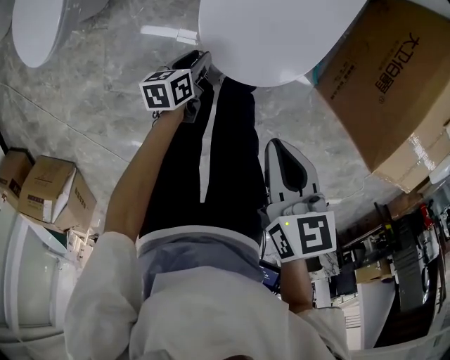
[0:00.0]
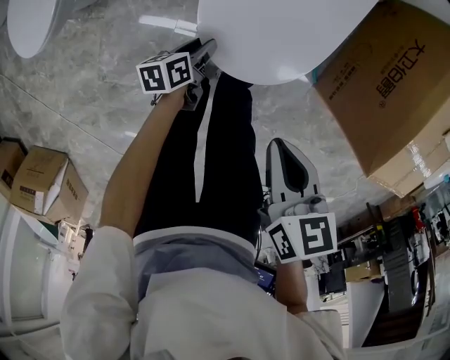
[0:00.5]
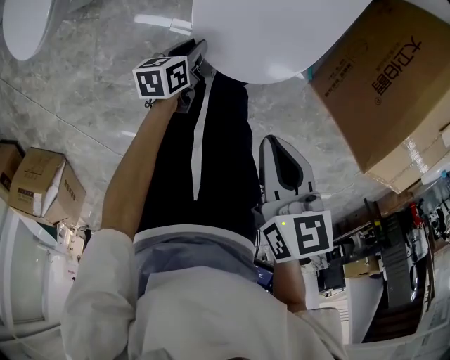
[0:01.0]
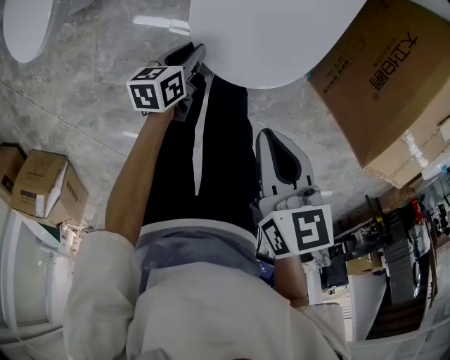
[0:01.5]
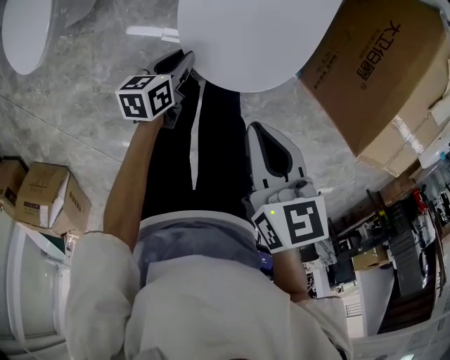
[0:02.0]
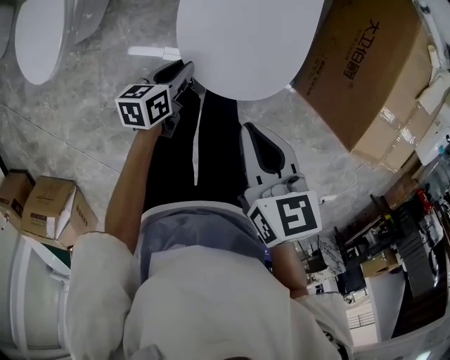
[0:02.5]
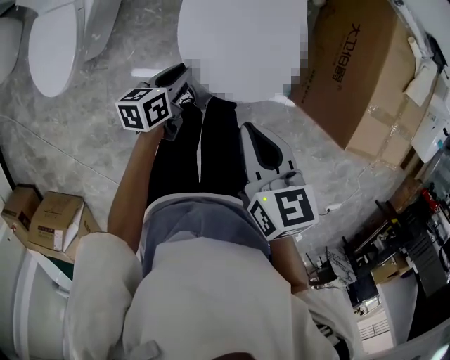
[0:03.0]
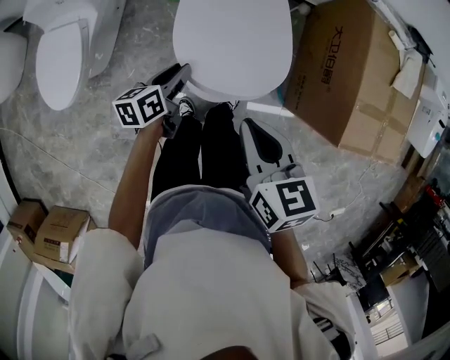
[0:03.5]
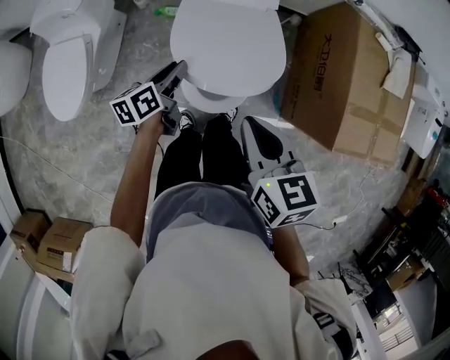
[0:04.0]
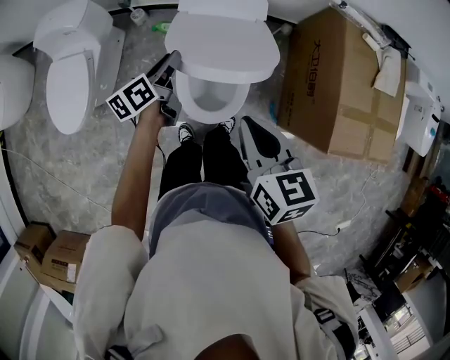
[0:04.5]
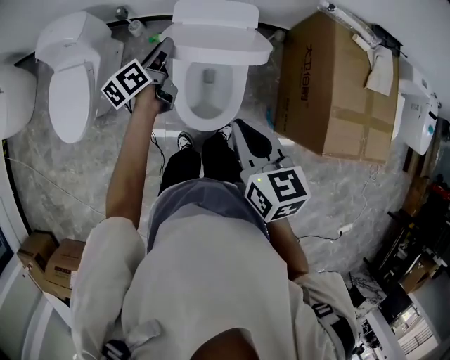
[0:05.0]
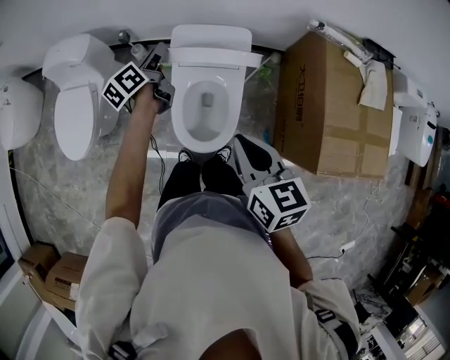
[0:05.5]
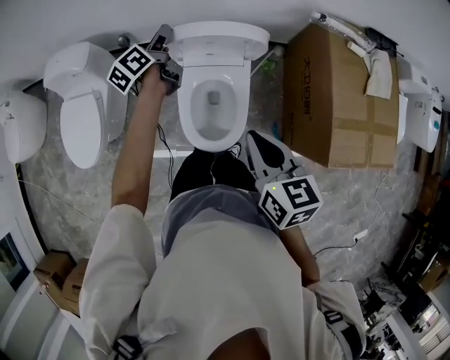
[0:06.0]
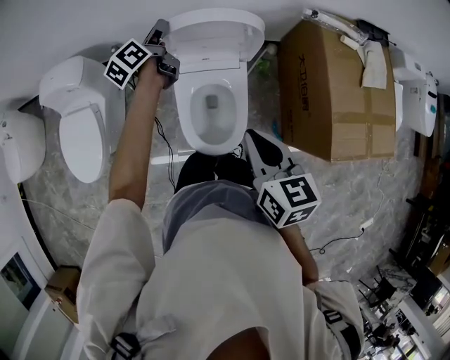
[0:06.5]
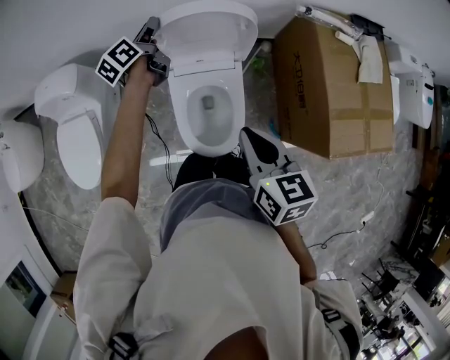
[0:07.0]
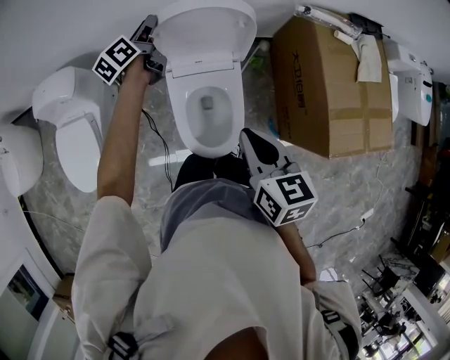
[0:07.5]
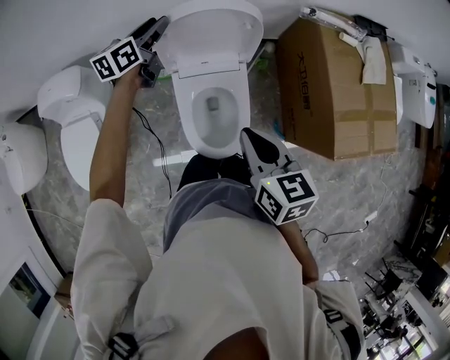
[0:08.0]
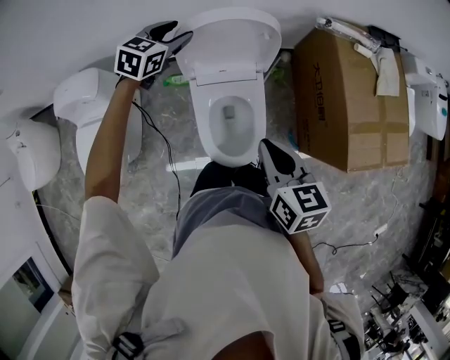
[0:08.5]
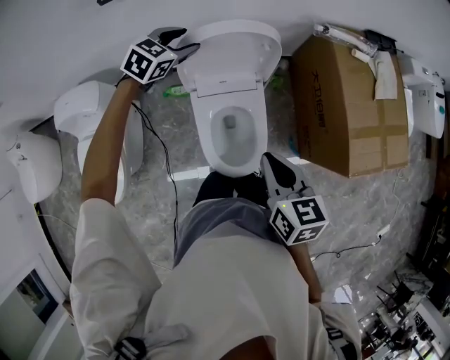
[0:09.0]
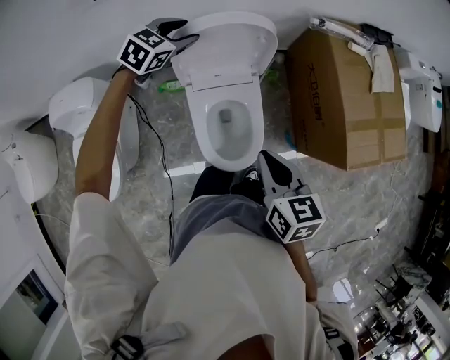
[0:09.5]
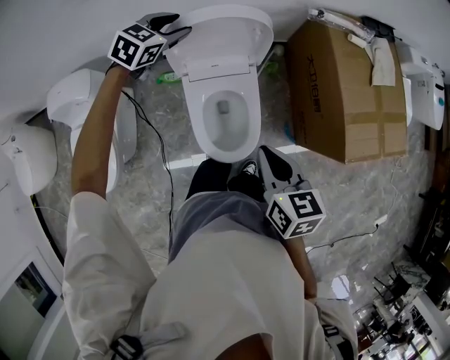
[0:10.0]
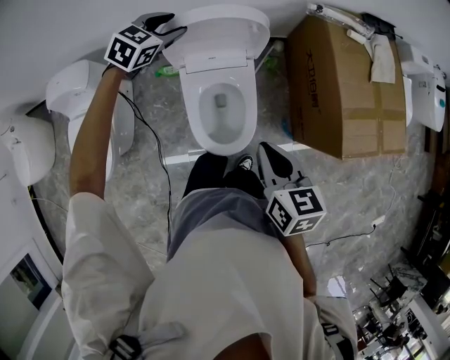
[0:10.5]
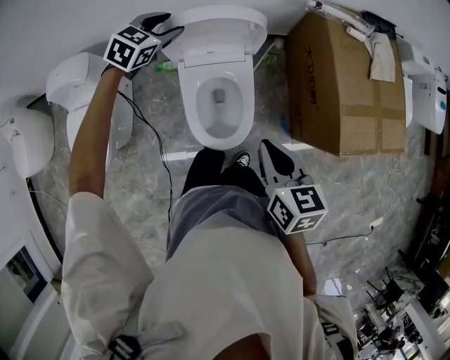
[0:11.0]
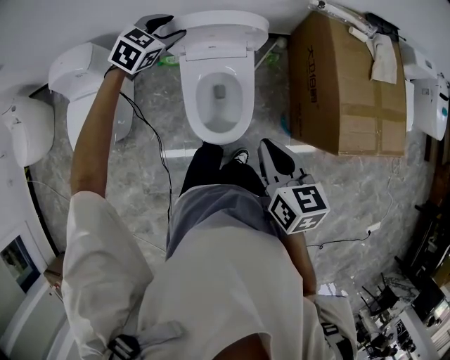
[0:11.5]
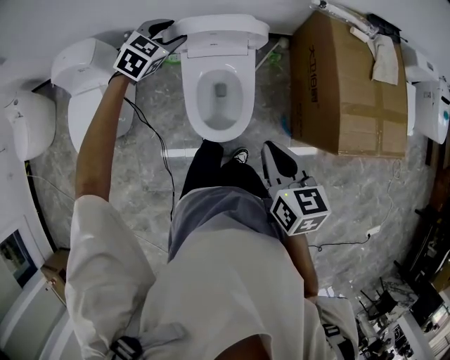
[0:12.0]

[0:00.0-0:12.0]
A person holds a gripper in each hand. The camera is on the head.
0:00.0 to 0:02.0: The left gripper goes about 5 cm upward.
0:02.0 to 0:04.0: The left gripper heads upward and forward, covering about 25 cm; the right gripper travels upward by about 20 cm.
0:04.0 to 0:06.0: The right gripper is displaced upward and to the right by roughly 5 cm; the left gripper goes some 25 cm forward and upward, and swivels some 20 degrees.
0:06.0 to 0:08.0: The right gripper moves approximately 5 cm; the left gripper travels forward by some 10 cm, and rotates some 40 degrees.
0:08.0 to 0:10.0: The left gripper changes place by some 5 cm, and rotates around the line of its fingers by about 40 degrees, clockwise from behind.
0:10.0 to 0:12.0: The right gripper moves to the right and backward, roughly 10 cm, while the left gripper shifts approximately 15 cm backward.

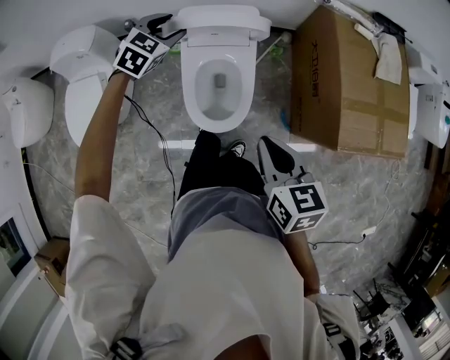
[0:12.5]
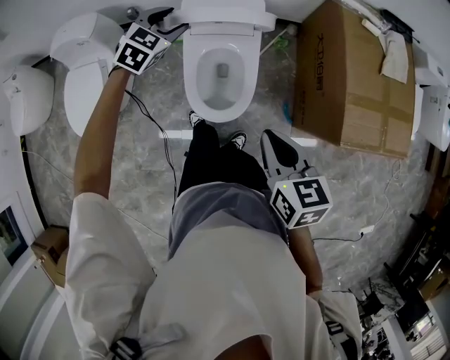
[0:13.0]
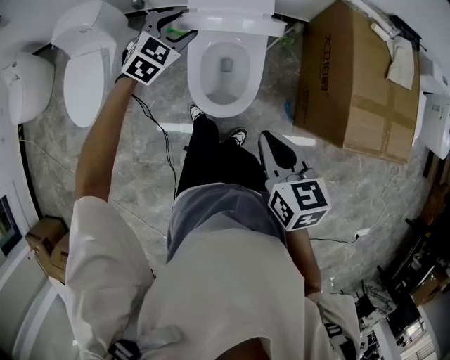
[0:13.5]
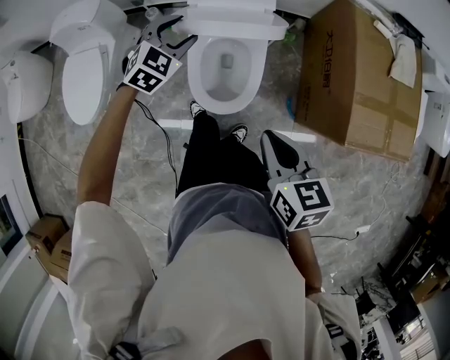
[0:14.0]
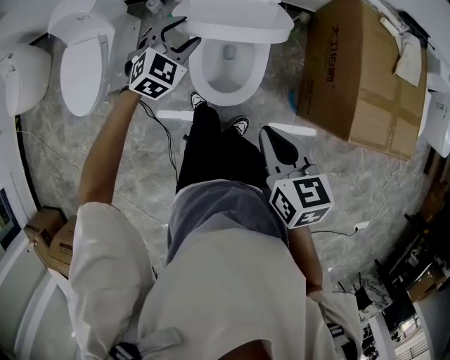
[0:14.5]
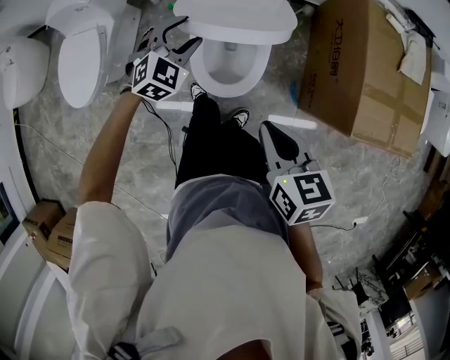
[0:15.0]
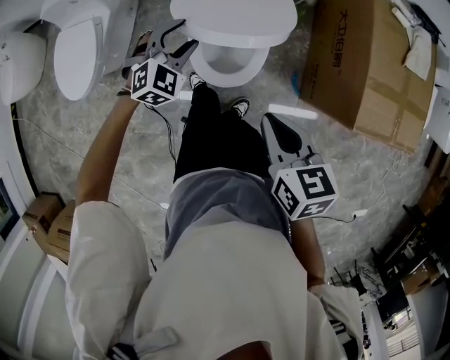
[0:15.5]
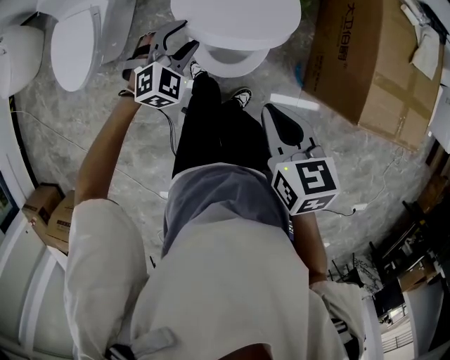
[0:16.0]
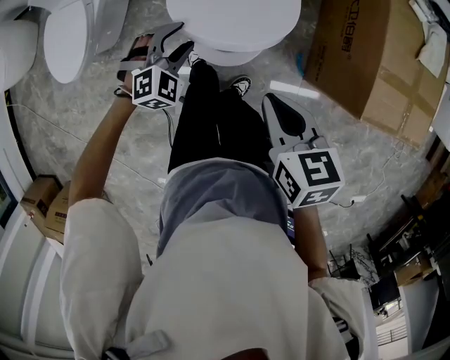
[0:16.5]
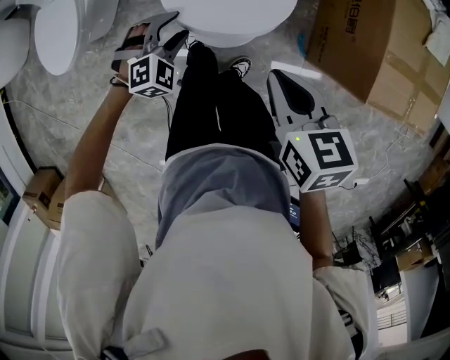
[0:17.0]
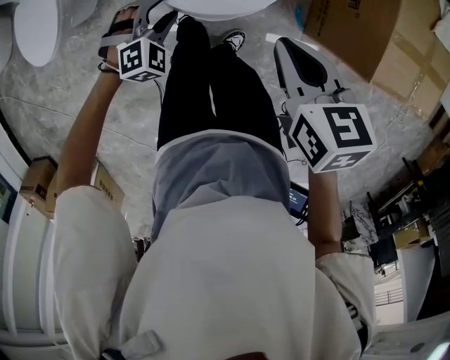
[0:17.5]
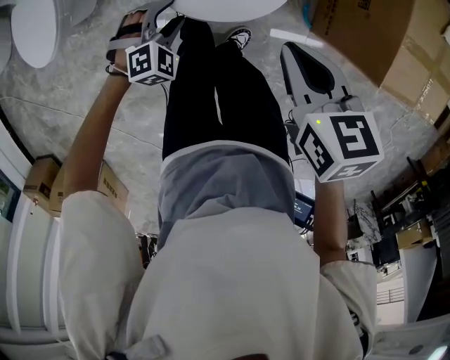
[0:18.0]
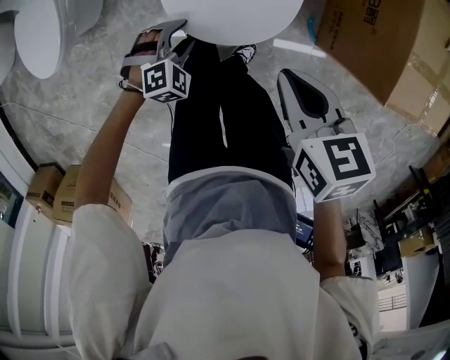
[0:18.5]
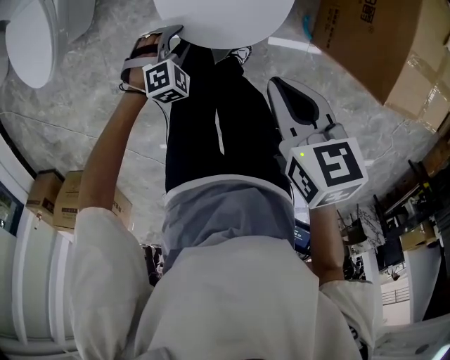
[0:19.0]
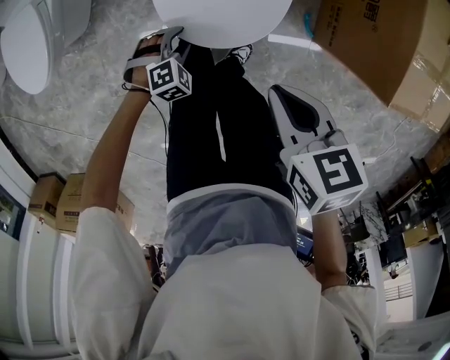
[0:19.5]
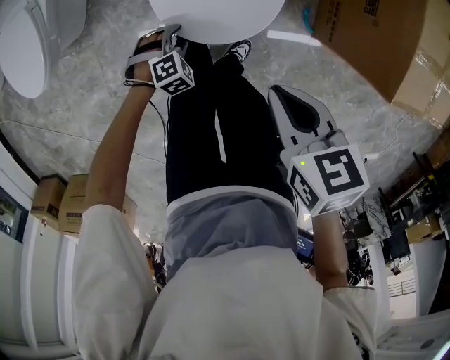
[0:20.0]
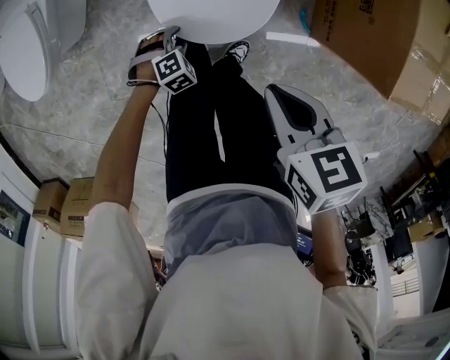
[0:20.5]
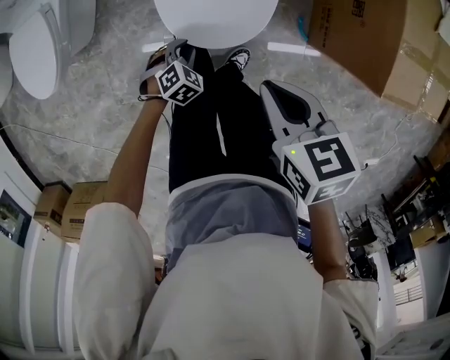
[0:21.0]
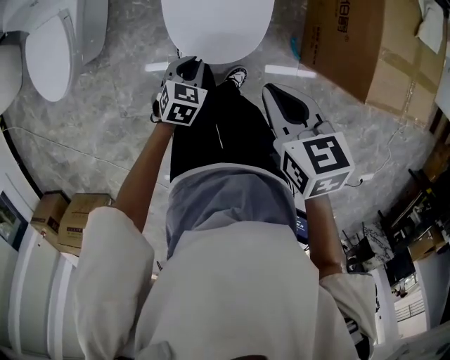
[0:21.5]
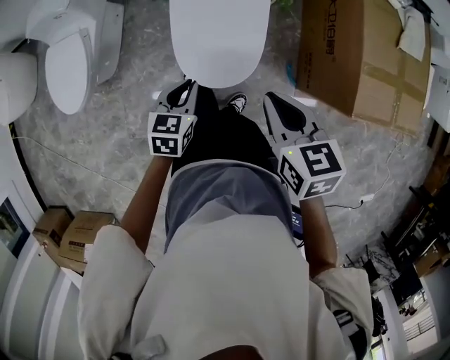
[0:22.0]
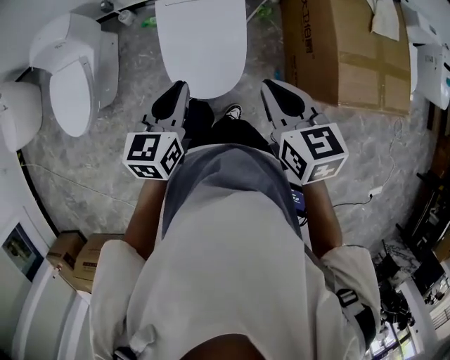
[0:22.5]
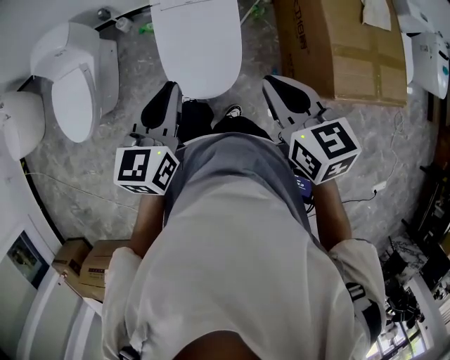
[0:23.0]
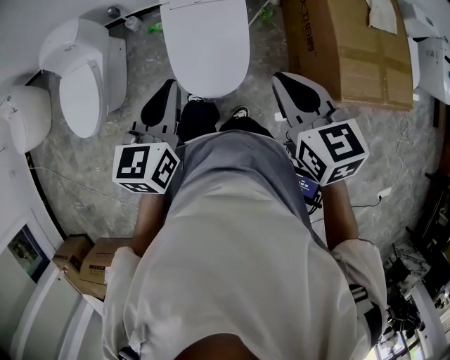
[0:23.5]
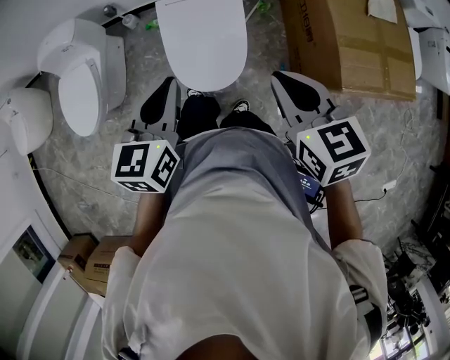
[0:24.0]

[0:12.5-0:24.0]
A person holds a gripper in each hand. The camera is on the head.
0:12.5 to 0:14.5: The left gripper goes approximately 15 cm backward and downward, while the right gripper ends up roughly 5 cm from where it was.
0:14.5 to 0:16.5: The right gripper goes approximately 5 cm downward. Meanwhile the left gripper heads backward and downward, covering some 15 cm.
0:16.5 to 0:18.5: The right gripper is displaced downward by roughly 10 cm. The left gripper is displaced downward and backward by about 15 cm.
0:18.5 to 0:20.0: The right gripper moves some 5 cm; the left gripper goes roughly 15 cm downward.
0:20.0 to 0:22.0: The right gripper travels upward by some 15 cm, while the left gripper travels upward by some 30 cm, rotates around the line of its fingers by roughly 60 degrees, counterclockwise from behind, and closes up.
0:22.0 to 0:24.0: The right gripper goes approximately 10 cm upward and to the right. The left gripper moves upward, approximately 25 cm, and swivels about 20 degrees.

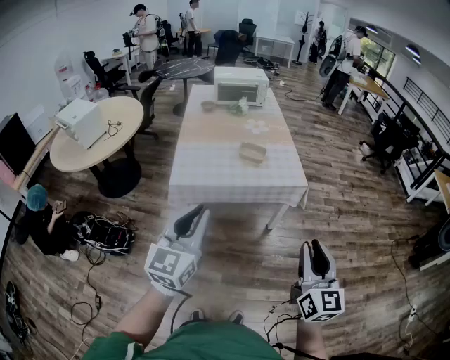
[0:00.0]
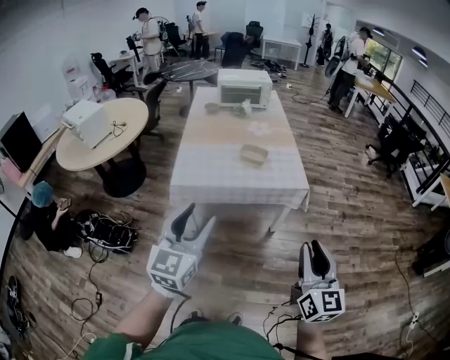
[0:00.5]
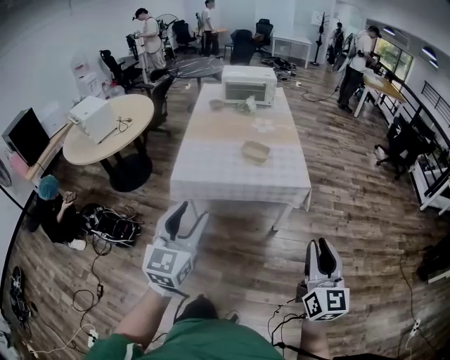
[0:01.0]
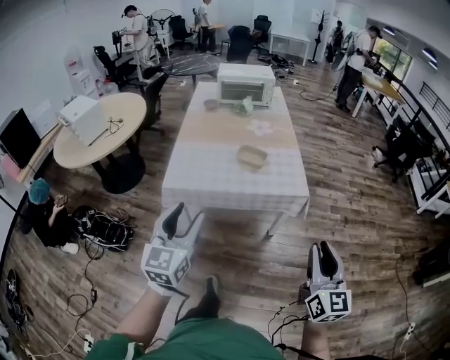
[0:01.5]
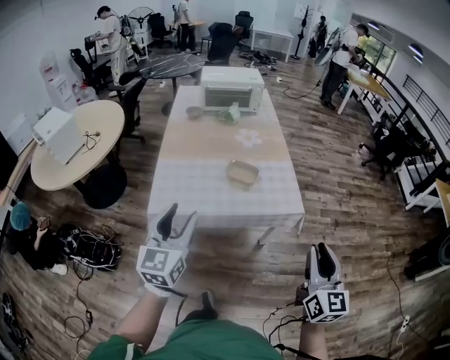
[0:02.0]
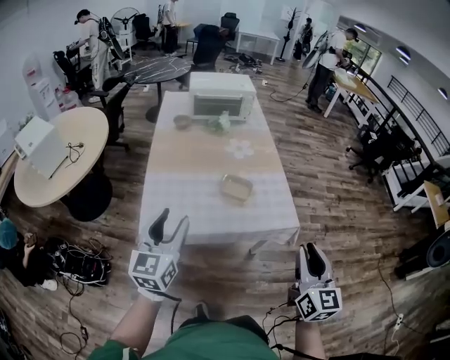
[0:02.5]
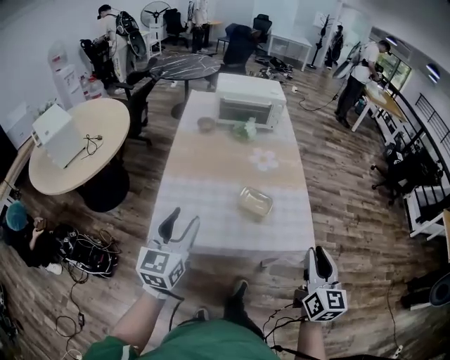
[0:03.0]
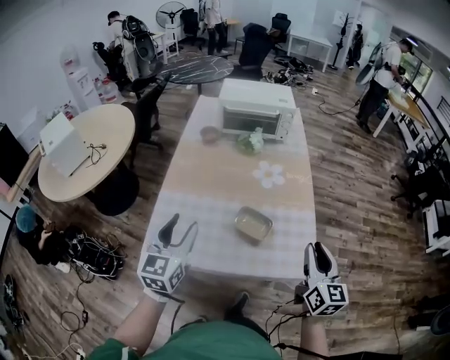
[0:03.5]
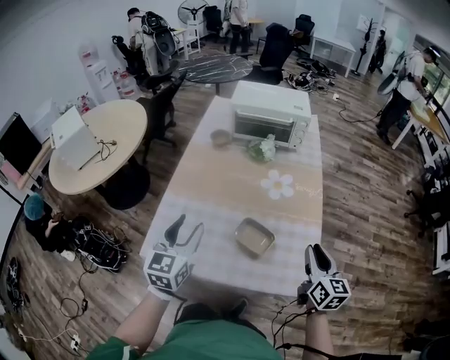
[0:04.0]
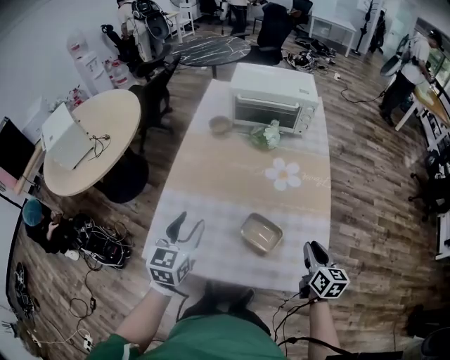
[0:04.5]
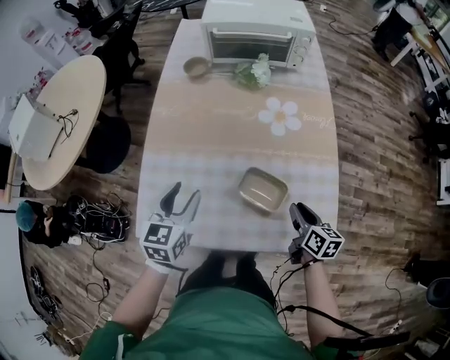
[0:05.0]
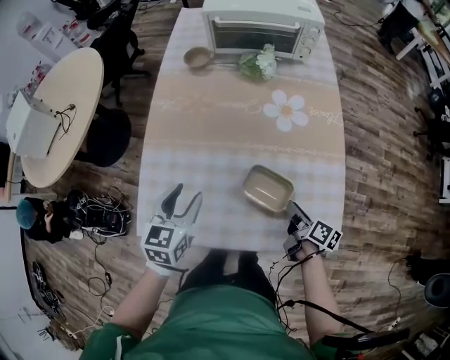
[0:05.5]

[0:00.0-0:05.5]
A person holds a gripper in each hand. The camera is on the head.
0:00.0 to 0:02.0: The grippers both shift forward by roughly 25 cm. The left gripper opens up.
0:02.0 to 0:03.5: The grippers both shift forward by some 35 cm.
0:03.5 to 0:05.5: The two grippers go some 30 cm downward and forward. The right gripper rotates around the line of its fingers by roughly 50 degrees, clockwise from behind; the left gripper swivels roughly 20 degrees.
